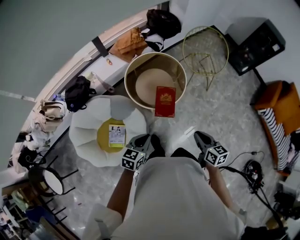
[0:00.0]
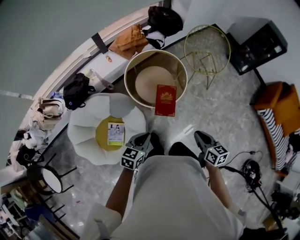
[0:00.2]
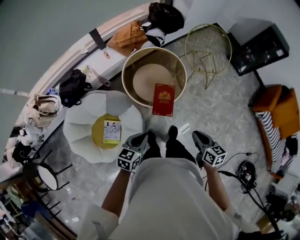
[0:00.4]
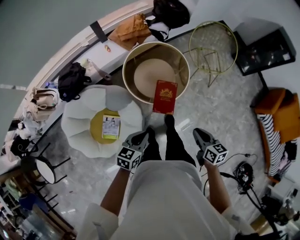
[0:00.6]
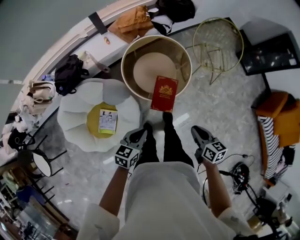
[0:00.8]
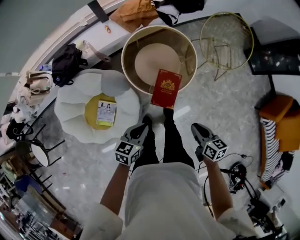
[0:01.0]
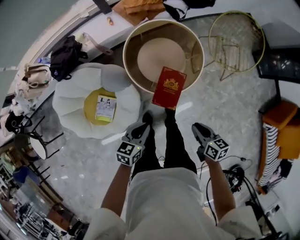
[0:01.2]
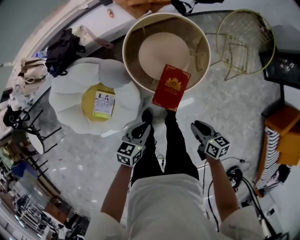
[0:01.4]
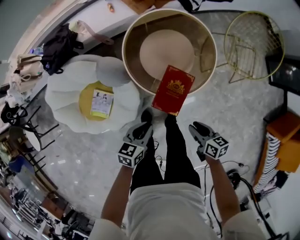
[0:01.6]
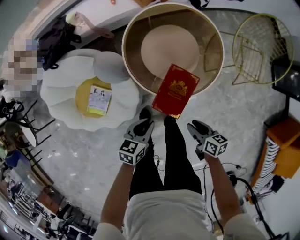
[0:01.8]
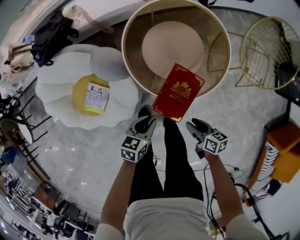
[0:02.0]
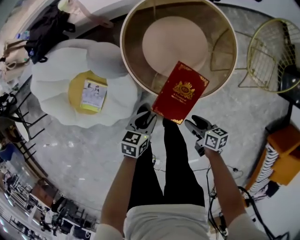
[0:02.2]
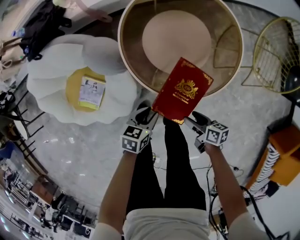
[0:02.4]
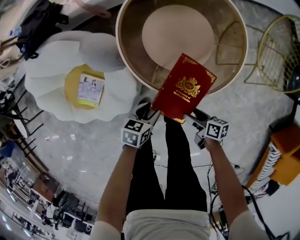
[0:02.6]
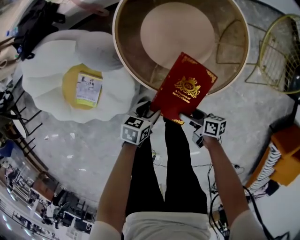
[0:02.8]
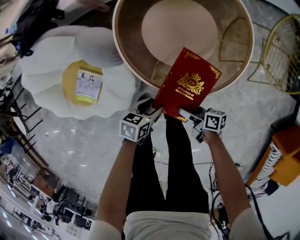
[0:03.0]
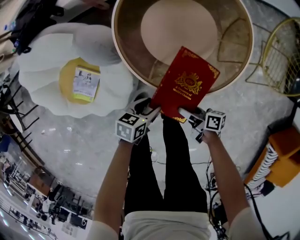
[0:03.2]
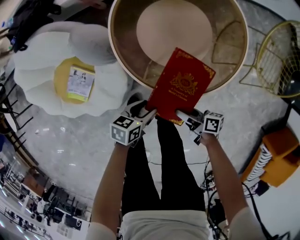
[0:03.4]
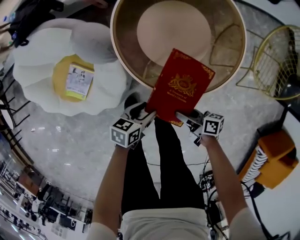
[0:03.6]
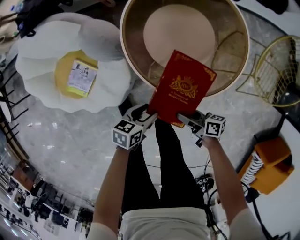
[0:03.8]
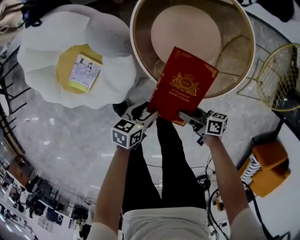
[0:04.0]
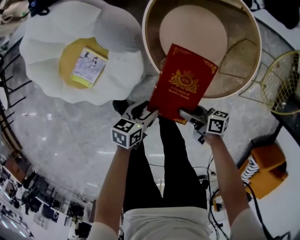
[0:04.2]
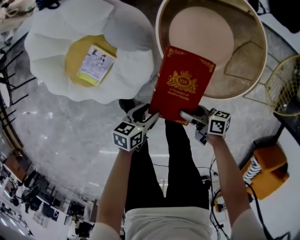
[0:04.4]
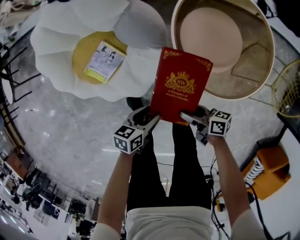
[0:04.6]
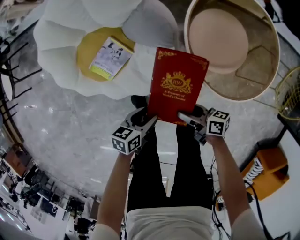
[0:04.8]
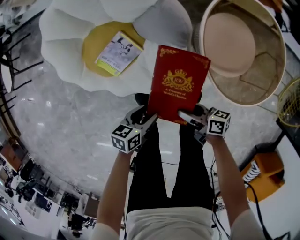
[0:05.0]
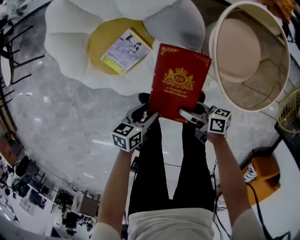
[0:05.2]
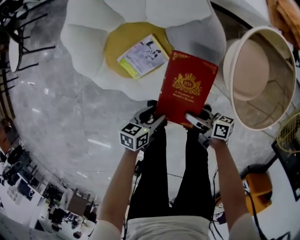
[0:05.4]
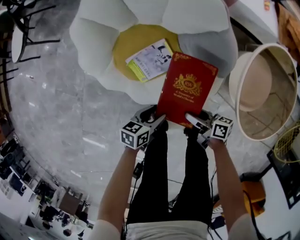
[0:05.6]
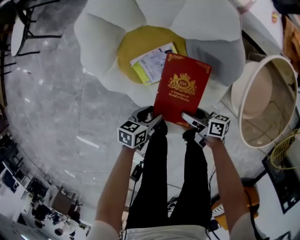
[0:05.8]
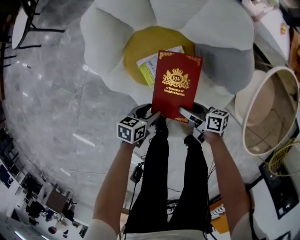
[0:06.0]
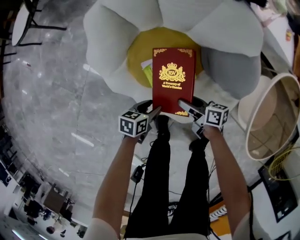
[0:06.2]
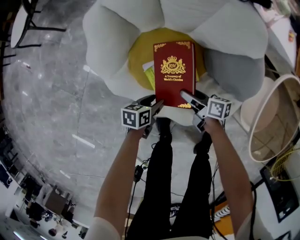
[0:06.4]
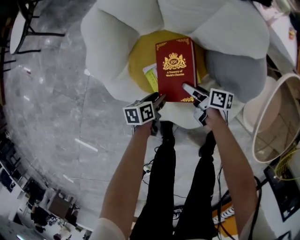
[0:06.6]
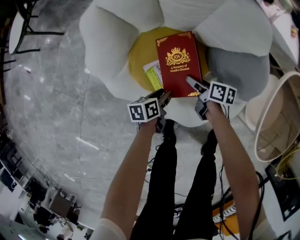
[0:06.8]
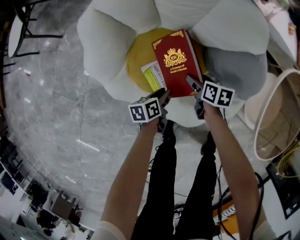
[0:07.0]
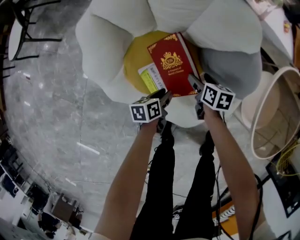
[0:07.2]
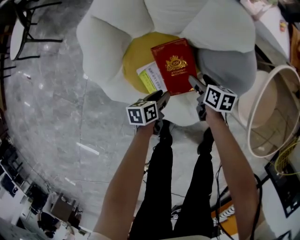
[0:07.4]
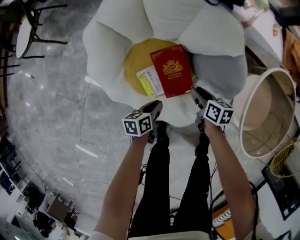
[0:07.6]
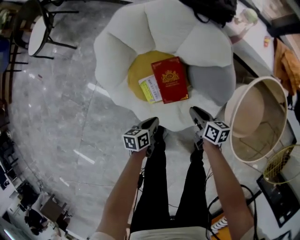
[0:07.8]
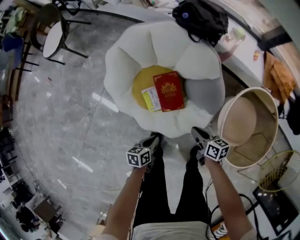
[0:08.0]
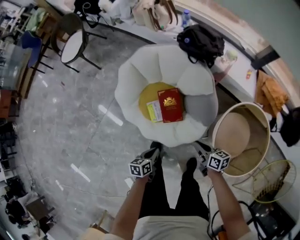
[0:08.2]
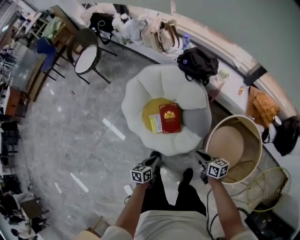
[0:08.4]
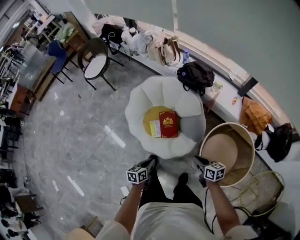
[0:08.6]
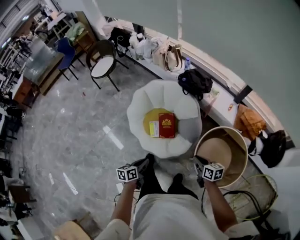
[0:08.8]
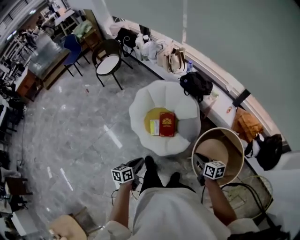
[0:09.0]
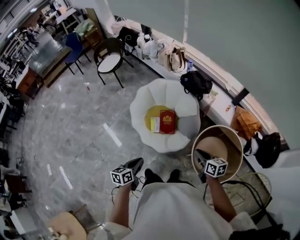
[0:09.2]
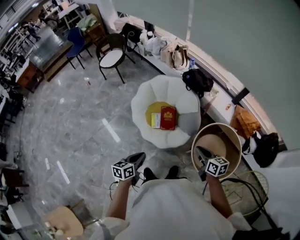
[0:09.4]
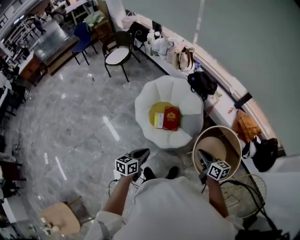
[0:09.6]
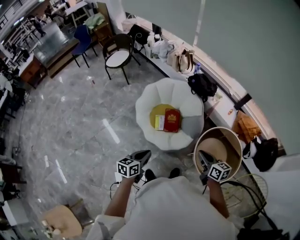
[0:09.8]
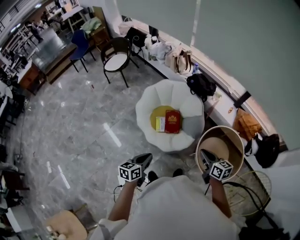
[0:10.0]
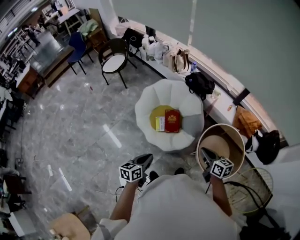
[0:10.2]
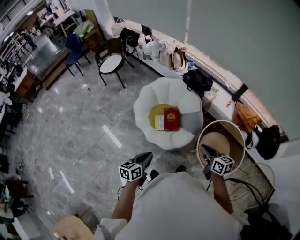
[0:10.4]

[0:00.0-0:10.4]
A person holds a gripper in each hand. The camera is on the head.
0:00.0 to 0:01.4: The grippers both shift downward and forward by approximately 25 cm. The left gripper changes its angle by some 20 degrees, while the right gripper rotates about 30 degrees.
0:01.4 to 0:03.0: Both grippers move downward, roughly 30 cm. The left gripper swivels some 20 degrees, and opens, while the right gripper rotates approximately 30 degrees, and opens its fingers.
0:03.0 to 0:04.4: The left gripper changes place by about 15 cm, and rotates approximately 20 degrees. The right gripper ends up roughly 15 cm from where it was, and changes its angle by about 20 degrees.
0:04.4 to 0:06.0: The right gripper shifts by approximately 40 cm, and turns by approximately 20 degrees. The left gripper ends up some 35 cm from where it was, and changes its angle by some 20 degrees.
0:06.0 to 0:07.4: The left gripper moves some 10 cm. Meanwhile the right gripper shifts by about 15 cm, and turns by about 40 degrees.
0:07.4 to 0:09.0: The grippers both shift upward by some 60 cm. The left gripper swivels some 30 degrees, and closes. The right gripper changes its angle by approximately 40 degrees, and closes up.
0:09.0 to 0:10.4: The right gripper heads upward, to the left and backward, covering about 15 cm. Meanwhile the left gripper goes some 10 cm upward and backward.

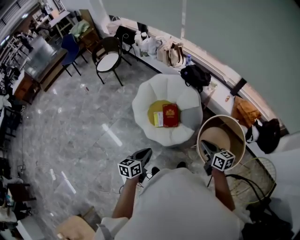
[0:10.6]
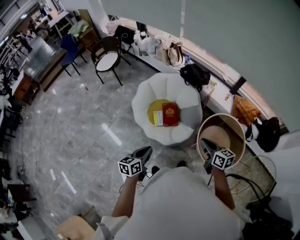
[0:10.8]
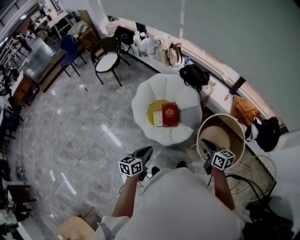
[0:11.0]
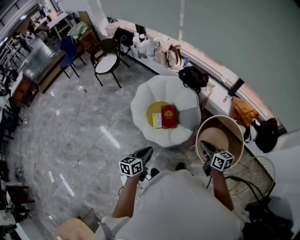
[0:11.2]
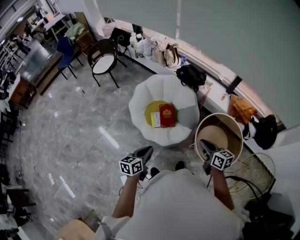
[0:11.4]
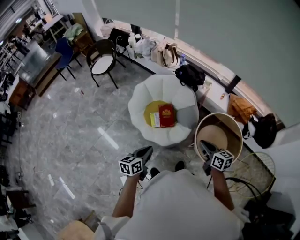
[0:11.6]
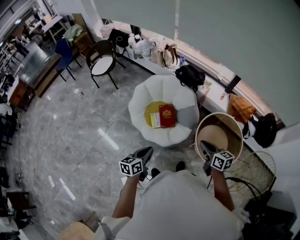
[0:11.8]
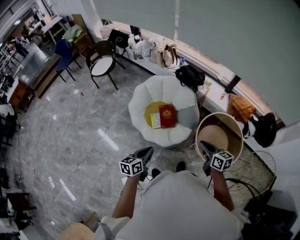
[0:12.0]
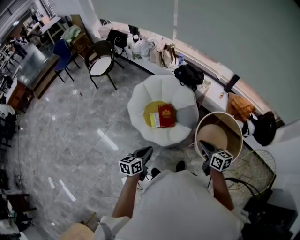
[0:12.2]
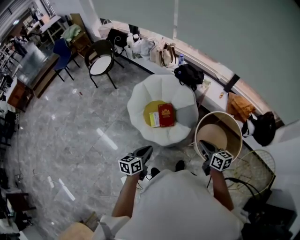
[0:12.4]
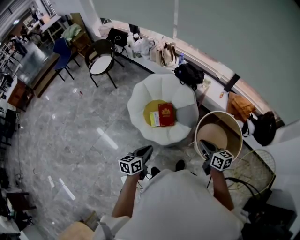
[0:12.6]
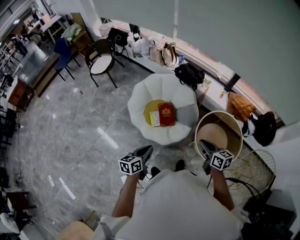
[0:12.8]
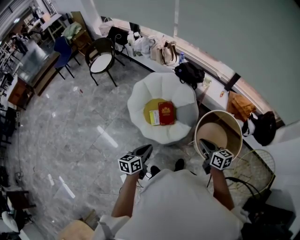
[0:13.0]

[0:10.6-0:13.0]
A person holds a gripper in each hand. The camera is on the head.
0:10.6 to 0:11.8: There are only small adjustments of the grippers.
0:11.8 to 0:13.0: Both grippers stay put.

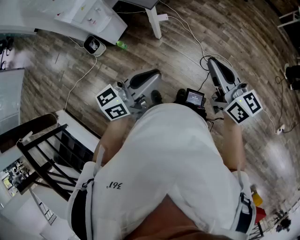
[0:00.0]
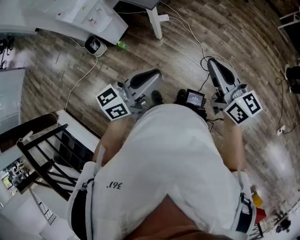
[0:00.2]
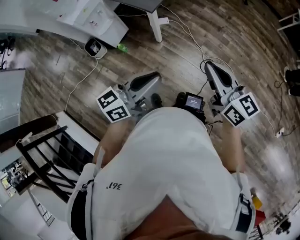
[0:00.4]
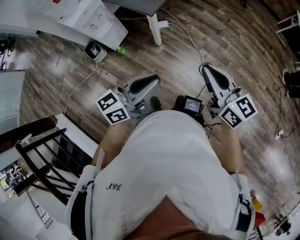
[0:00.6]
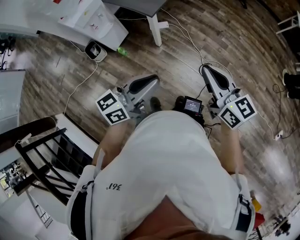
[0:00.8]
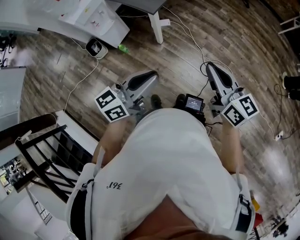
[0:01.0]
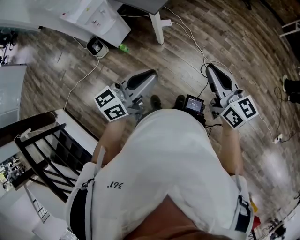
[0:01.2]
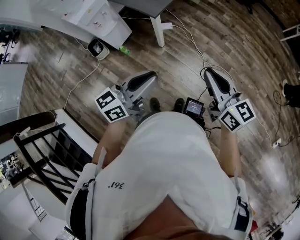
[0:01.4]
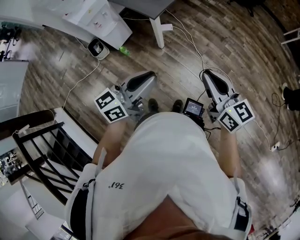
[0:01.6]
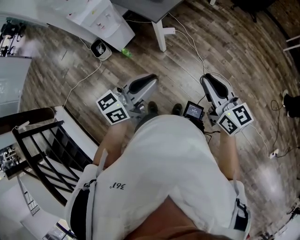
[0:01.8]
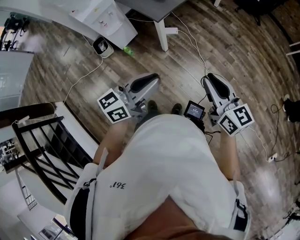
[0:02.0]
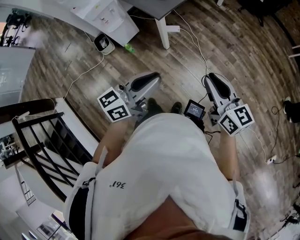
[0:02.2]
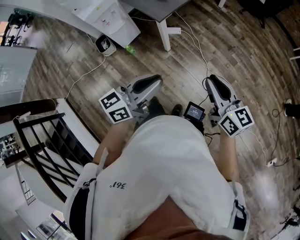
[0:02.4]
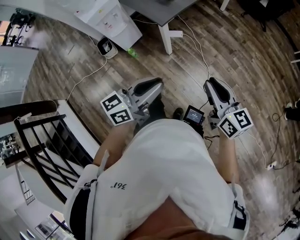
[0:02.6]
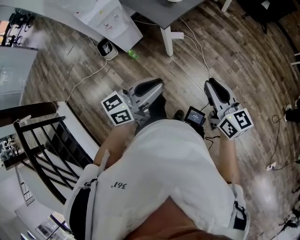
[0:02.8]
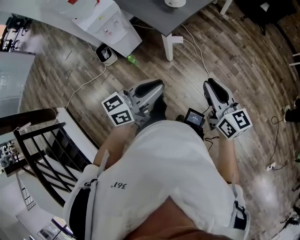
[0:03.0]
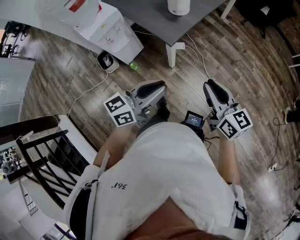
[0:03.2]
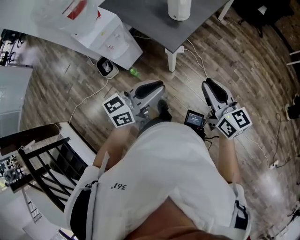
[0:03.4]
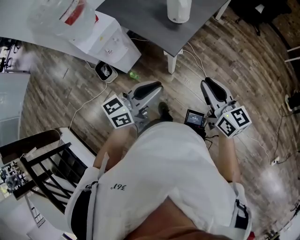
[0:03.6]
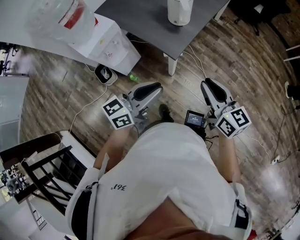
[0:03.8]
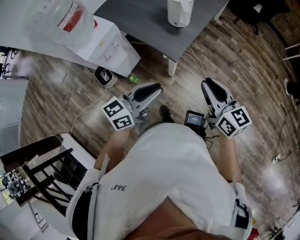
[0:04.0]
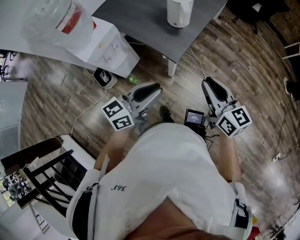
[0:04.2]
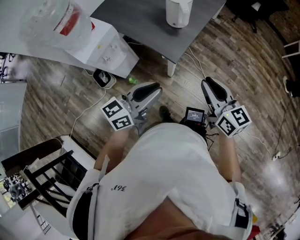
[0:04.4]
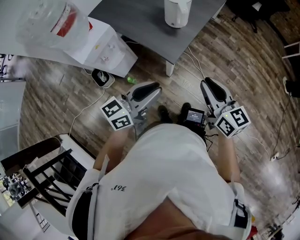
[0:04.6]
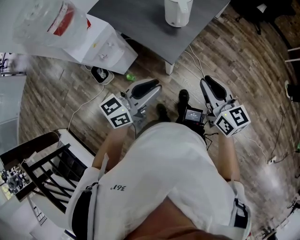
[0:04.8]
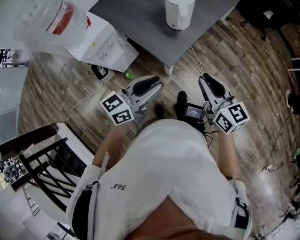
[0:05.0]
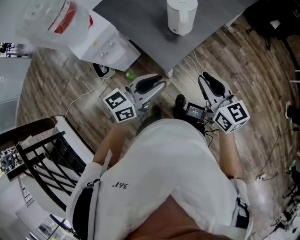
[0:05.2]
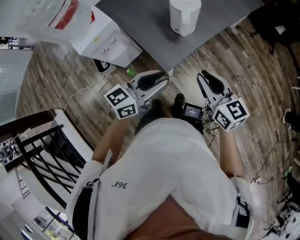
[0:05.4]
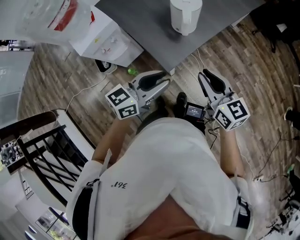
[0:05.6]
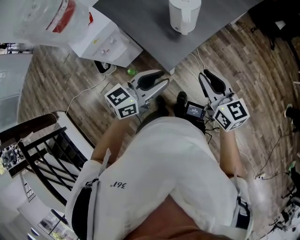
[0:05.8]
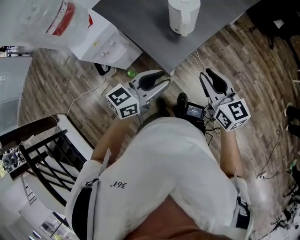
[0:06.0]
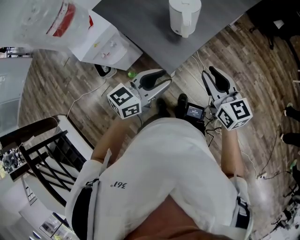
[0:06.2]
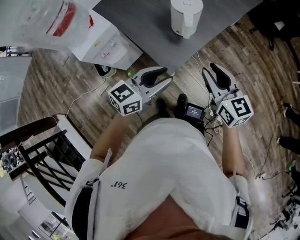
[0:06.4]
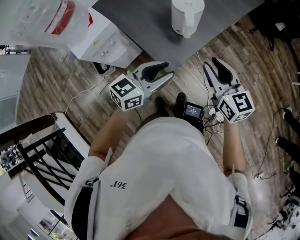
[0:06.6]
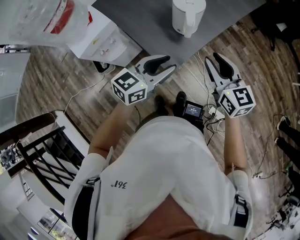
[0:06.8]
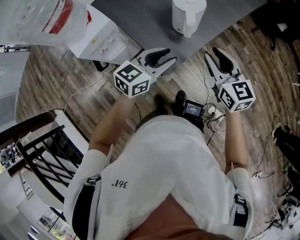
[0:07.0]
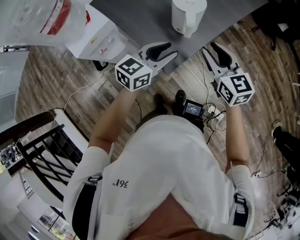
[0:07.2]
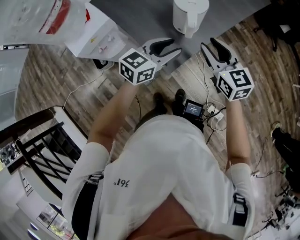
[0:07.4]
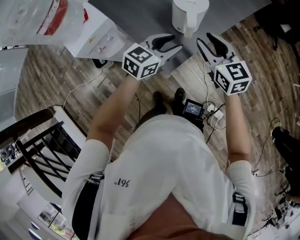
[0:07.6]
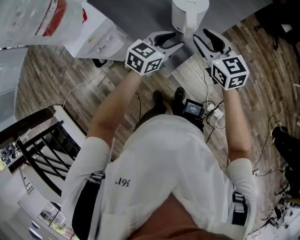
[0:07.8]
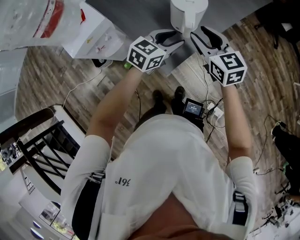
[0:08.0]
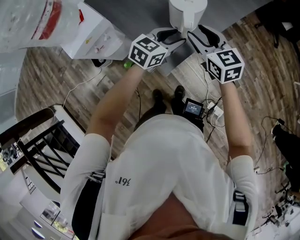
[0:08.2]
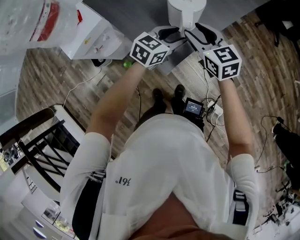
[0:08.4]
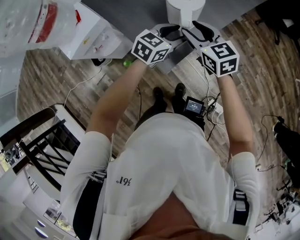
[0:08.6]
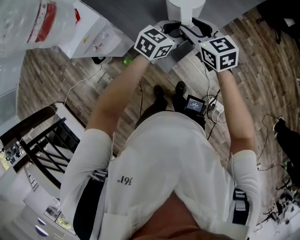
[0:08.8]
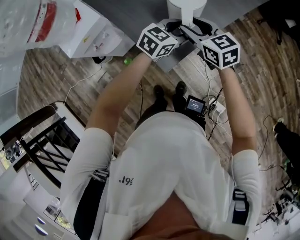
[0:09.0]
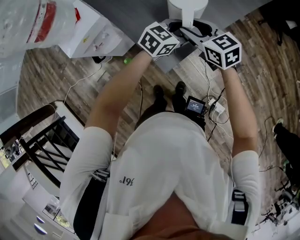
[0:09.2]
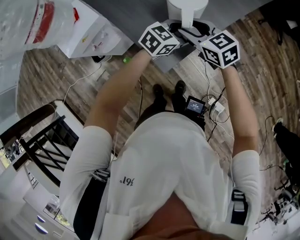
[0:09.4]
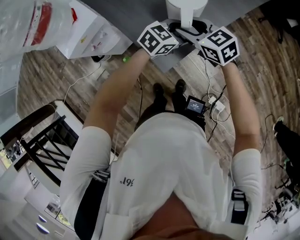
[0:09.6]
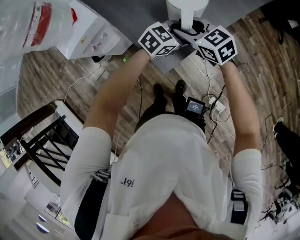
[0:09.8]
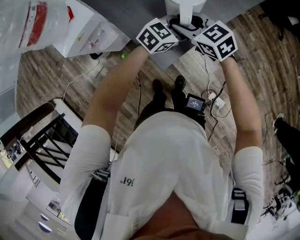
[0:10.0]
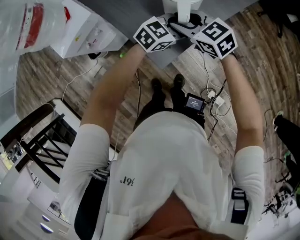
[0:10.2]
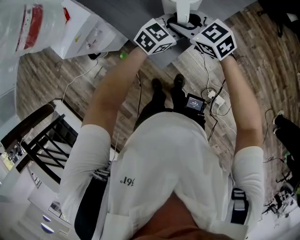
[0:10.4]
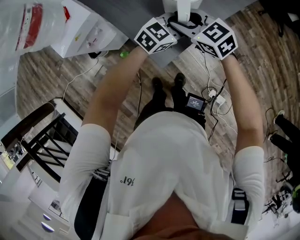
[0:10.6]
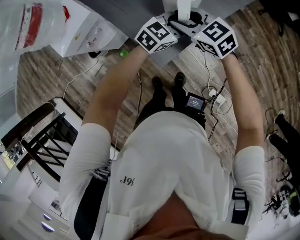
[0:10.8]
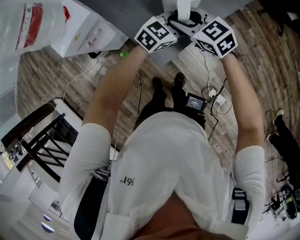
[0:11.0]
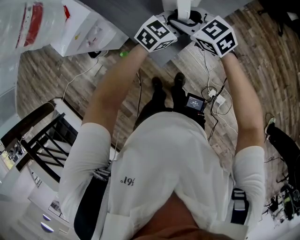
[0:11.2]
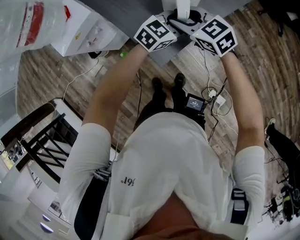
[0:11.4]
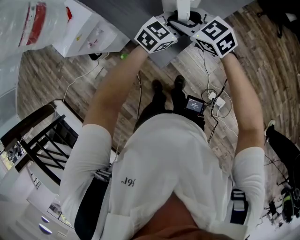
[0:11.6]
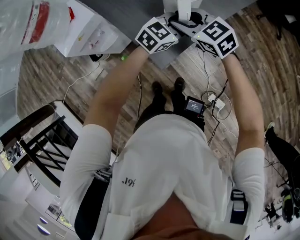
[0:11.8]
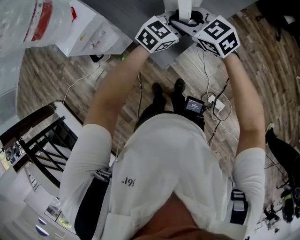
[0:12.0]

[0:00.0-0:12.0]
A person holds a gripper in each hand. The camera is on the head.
0:00.0 to 0:01.6: The grippers move only a little.
0:01.6 to 0:03.0: Both grippers move forward, some 10 cm.
0:03.0 to 0:04.4: The two grippers go about 20 cm forward and to the left.
0:04.4 to 0:06.0: The left gripper is displaced forward and to the right by roughly 15 cm. The right gripper heads forward, covering about 15 cm.
0:06.0 to 0:07.6: The two grippers go roughly 15 cm forward.
0:07.6 to 0:09.0: The right gripper is displaced forward and downward by approximately 5 cm, while the left gripper heads forward, to the right and downward, covering roughly 10 cm.
0:09.0 to 0:12.0: The grippers make only small movements.
